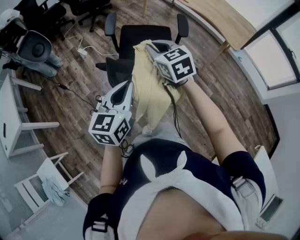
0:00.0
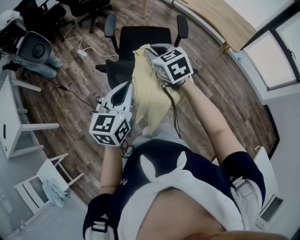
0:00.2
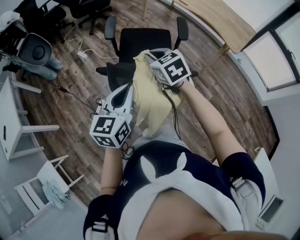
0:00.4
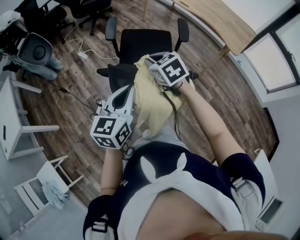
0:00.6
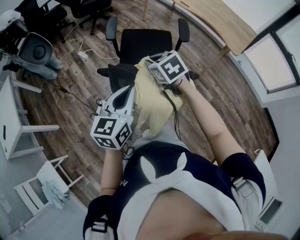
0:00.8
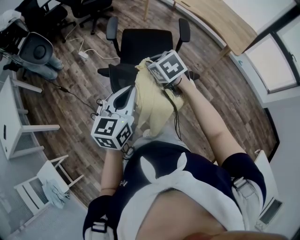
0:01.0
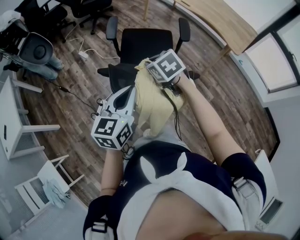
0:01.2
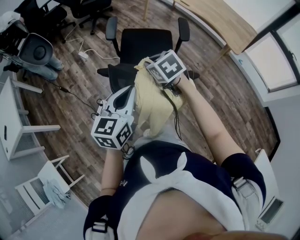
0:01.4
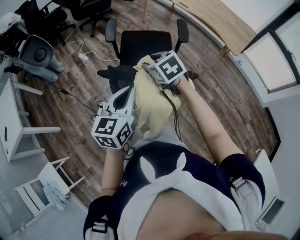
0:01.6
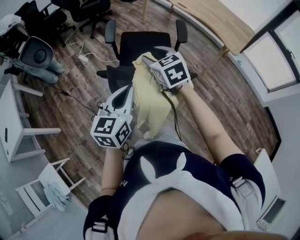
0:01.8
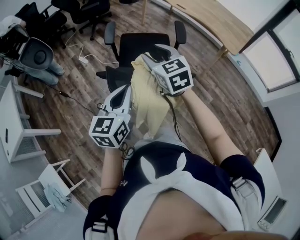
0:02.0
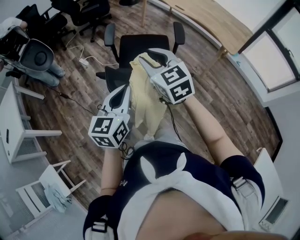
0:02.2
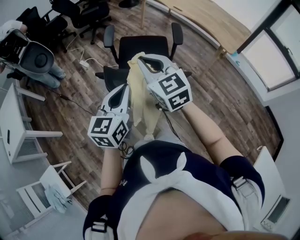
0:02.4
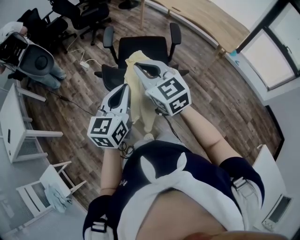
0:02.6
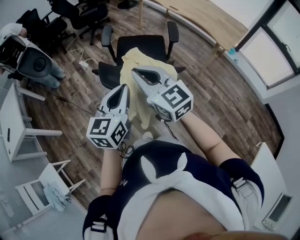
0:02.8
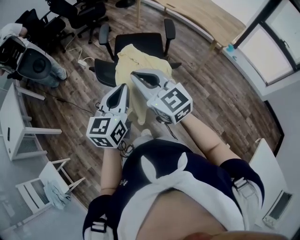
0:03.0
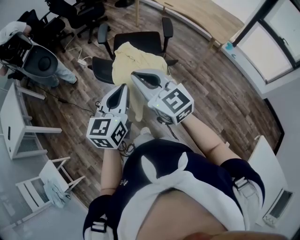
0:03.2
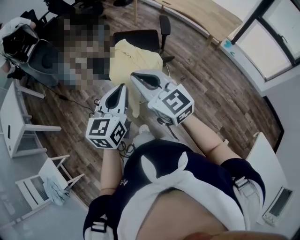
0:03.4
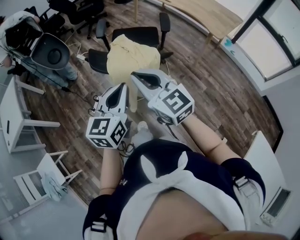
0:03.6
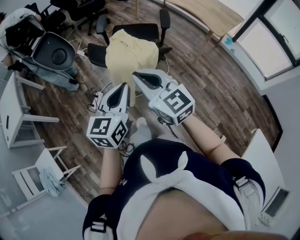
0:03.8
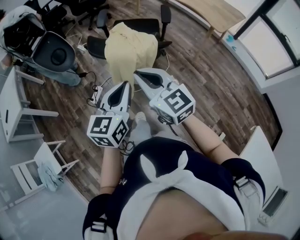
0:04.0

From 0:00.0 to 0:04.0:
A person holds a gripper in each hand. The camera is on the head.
From 0:00.0 to 0:01.4: The right gripper goes approximately 5 cm downward, and swivels some 20 degrees.
From 0:01.4 to 0:02.6: The left gripper shifts by approximately 5 cm. Meanwhile the right gripper travels upward and backward by roughly 20 cm, tips its fingers upward by about 40 degrees, and opens, then closes once more.
From 0:02.6 to 0:04.0: The grippers both shift backward by about 20 cm.

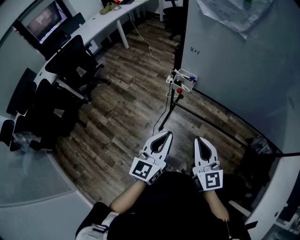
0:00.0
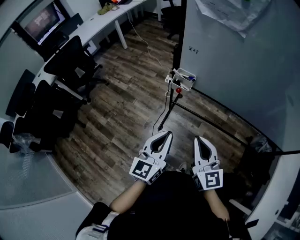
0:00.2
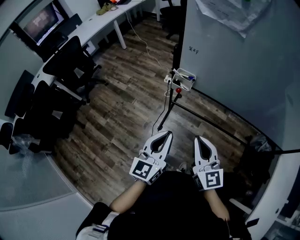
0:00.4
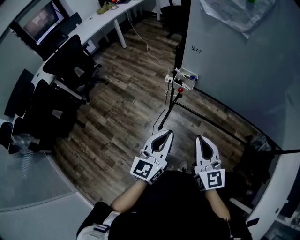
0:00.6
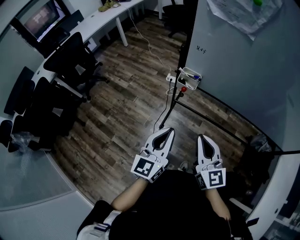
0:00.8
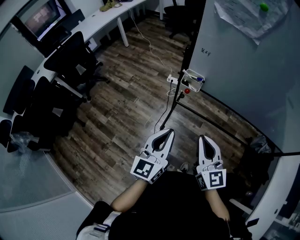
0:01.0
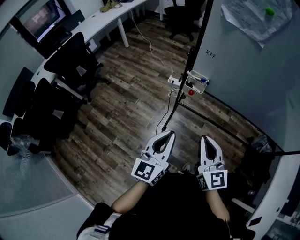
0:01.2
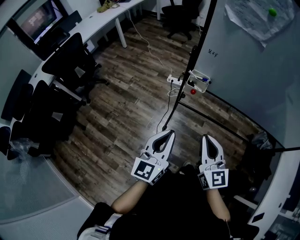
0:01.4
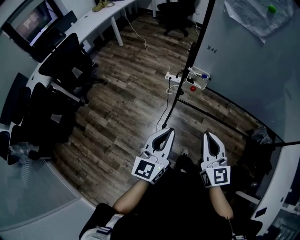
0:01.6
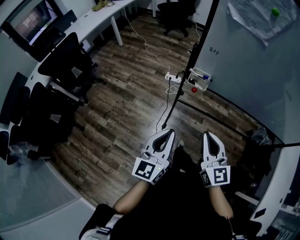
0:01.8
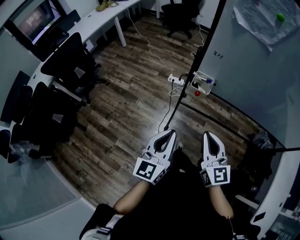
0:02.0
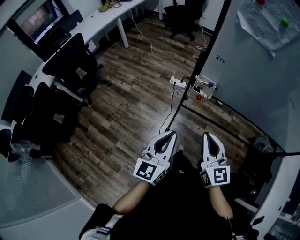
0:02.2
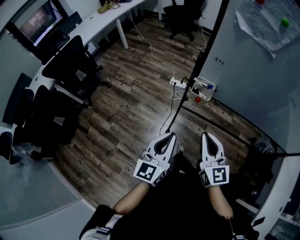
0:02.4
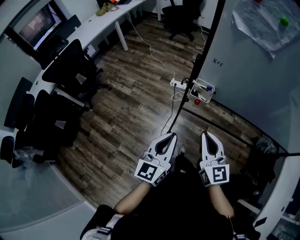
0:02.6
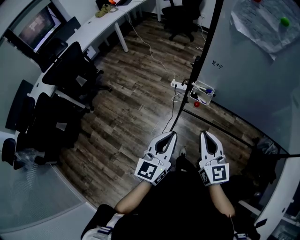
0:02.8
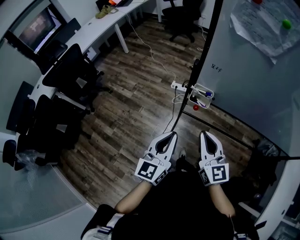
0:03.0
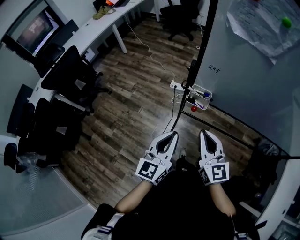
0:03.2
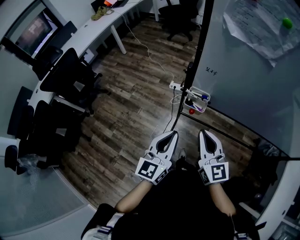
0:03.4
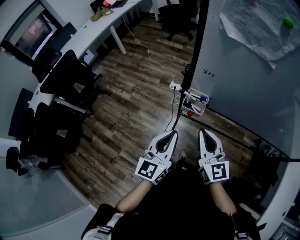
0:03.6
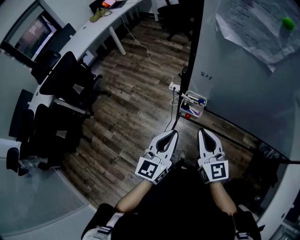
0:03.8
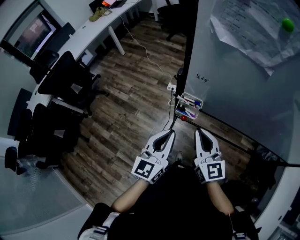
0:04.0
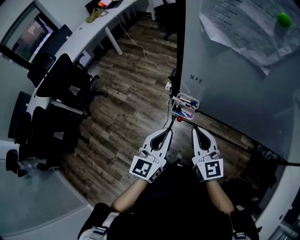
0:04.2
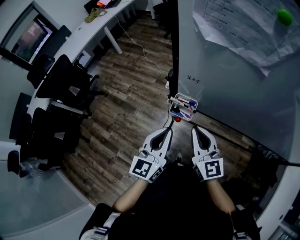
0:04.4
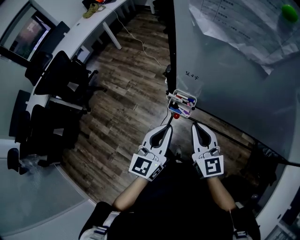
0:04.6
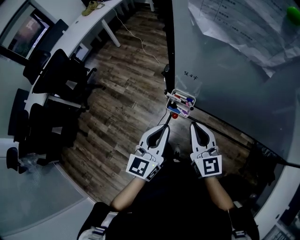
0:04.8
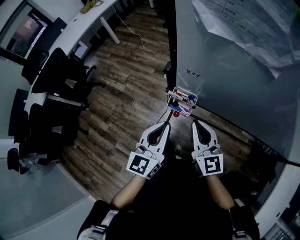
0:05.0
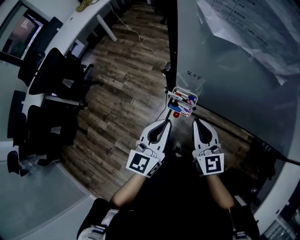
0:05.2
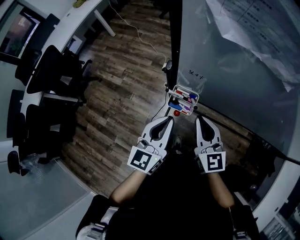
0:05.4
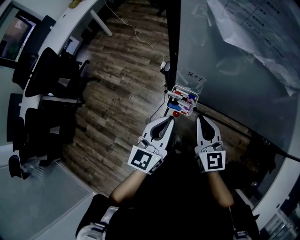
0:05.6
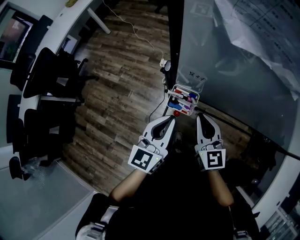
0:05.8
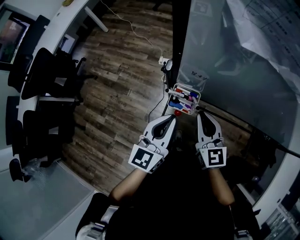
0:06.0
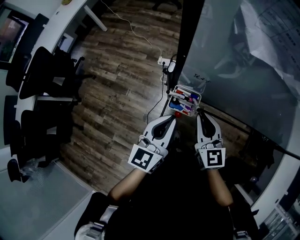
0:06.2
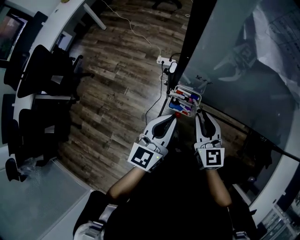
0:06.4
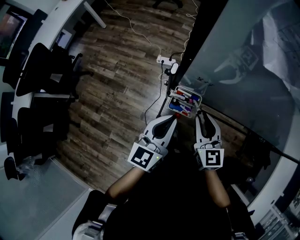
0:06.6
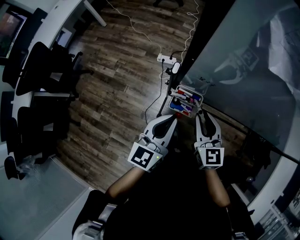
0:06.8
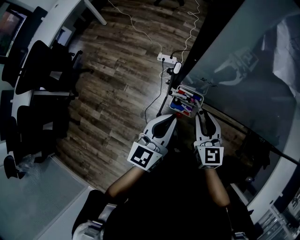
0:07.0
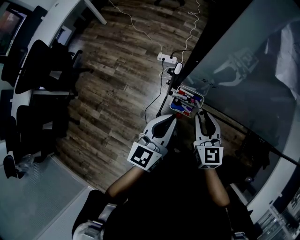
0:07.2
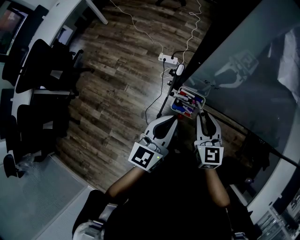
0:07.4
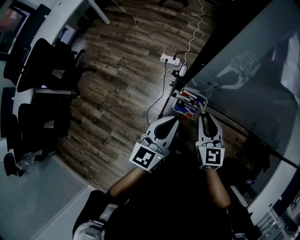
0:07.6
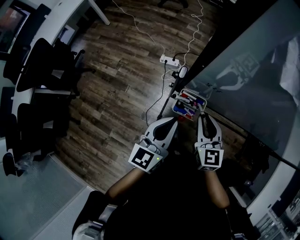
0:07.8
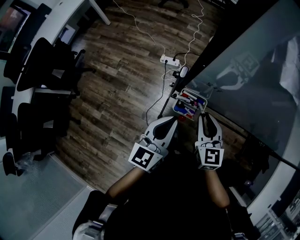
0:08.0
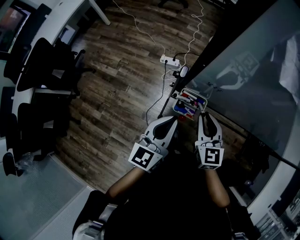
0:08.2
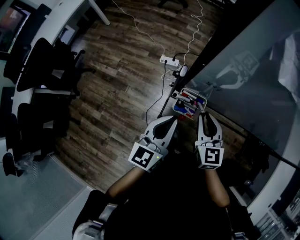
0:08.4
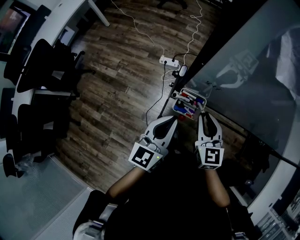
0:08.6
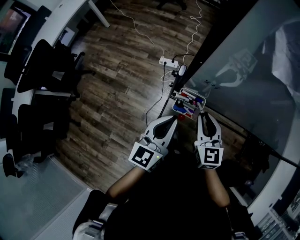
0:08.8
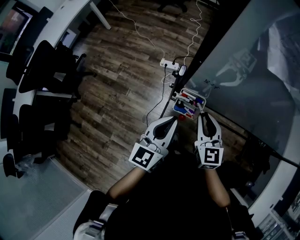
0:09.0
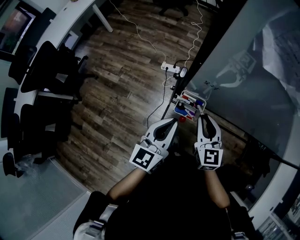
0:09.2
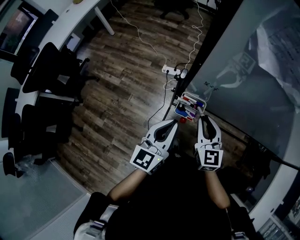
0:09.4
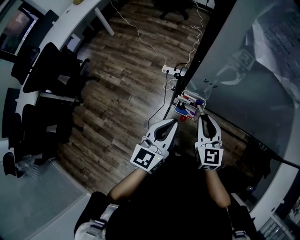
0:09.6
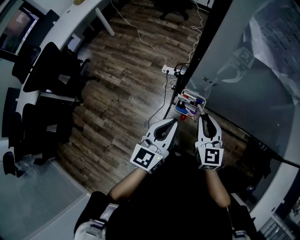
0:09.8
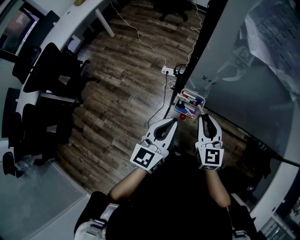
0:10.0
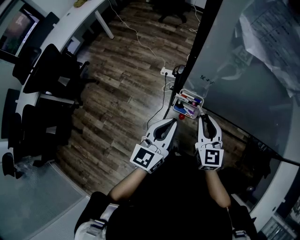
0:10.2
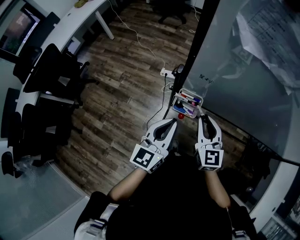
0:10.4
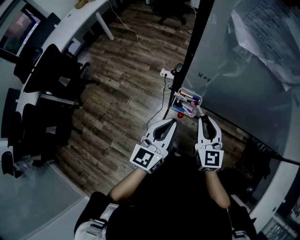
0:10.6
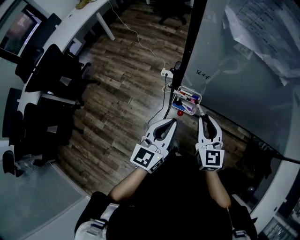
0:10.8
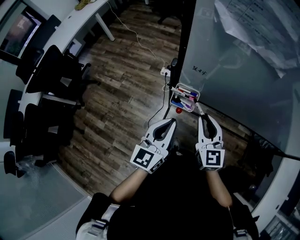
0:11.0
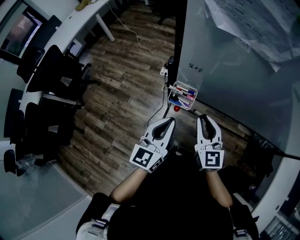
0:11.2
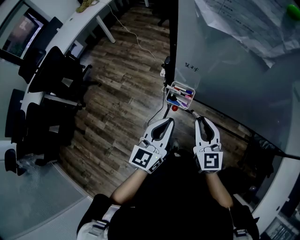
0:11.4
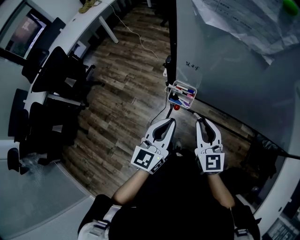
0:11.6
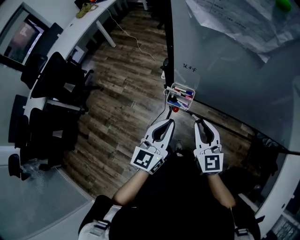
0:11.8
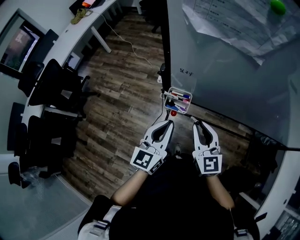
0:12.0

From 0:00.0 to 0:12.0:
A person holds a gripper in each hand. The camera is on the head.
From 0:00.0 to 0:01.6: Both grippers travel together to the left, about 10 cm.
From 0:01.6 to 0:03.0: The two grippers go some 10 cm forward.
From 0:03.0 to 0:04.4: Both grippers move forward and to the right, roughly 15 cm.
From 0:04.4 to 0:06.0: The left gripper moves forward, roughly 5 cm. Meanwhile the right gripper shifts some 10 cm forward and downward.
From 0:06.0 to 0:10.4: The grippers move only a little.
From 0:10.4 to 0:12.0: The right gripper moves backward, some 5 cm.

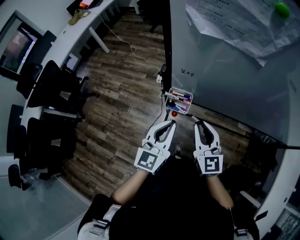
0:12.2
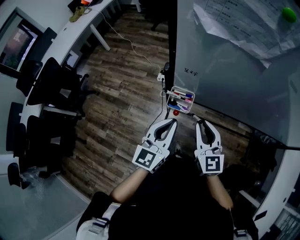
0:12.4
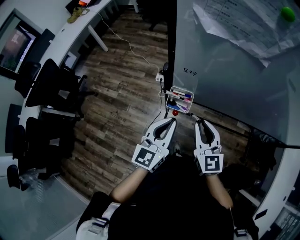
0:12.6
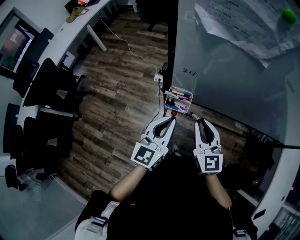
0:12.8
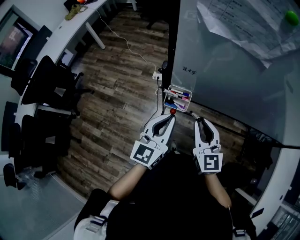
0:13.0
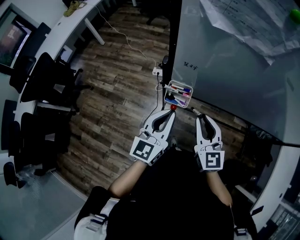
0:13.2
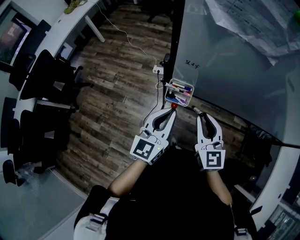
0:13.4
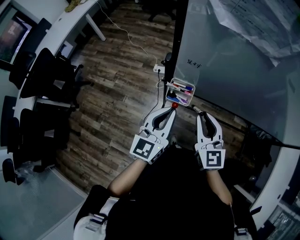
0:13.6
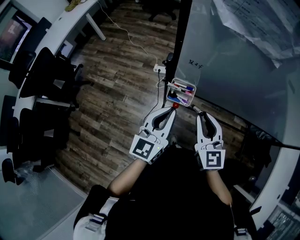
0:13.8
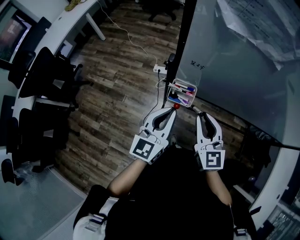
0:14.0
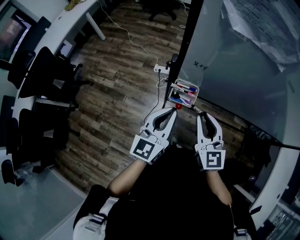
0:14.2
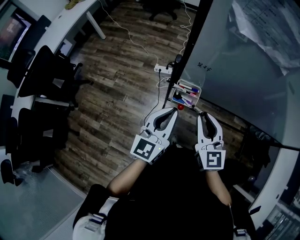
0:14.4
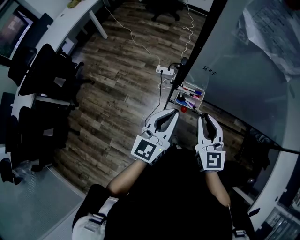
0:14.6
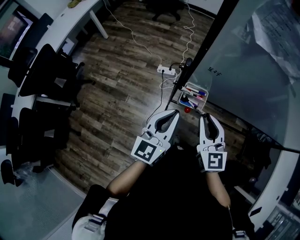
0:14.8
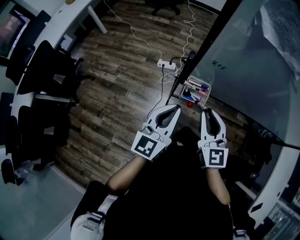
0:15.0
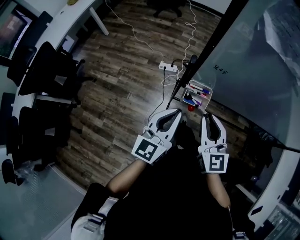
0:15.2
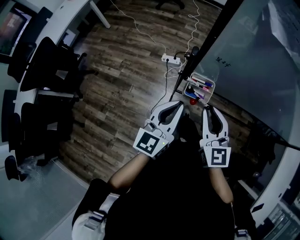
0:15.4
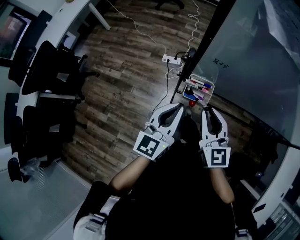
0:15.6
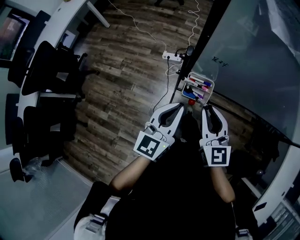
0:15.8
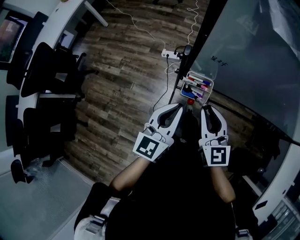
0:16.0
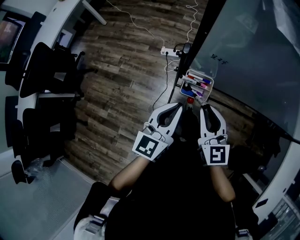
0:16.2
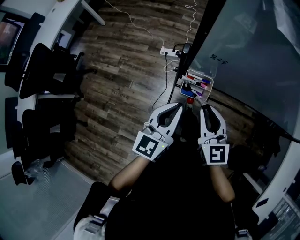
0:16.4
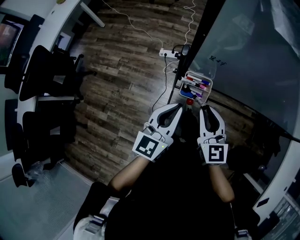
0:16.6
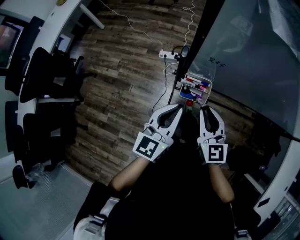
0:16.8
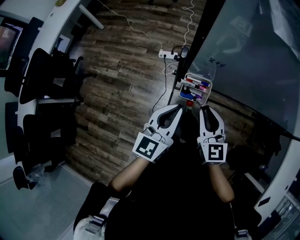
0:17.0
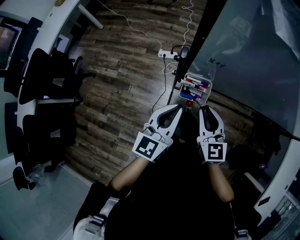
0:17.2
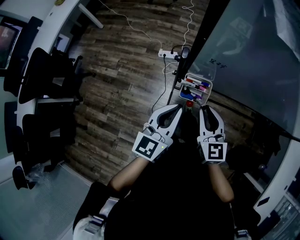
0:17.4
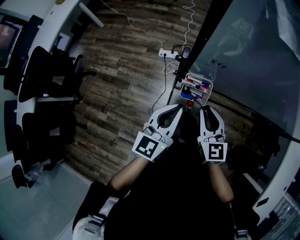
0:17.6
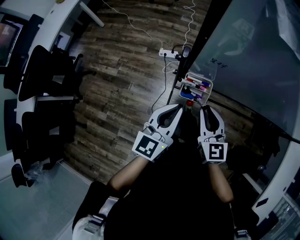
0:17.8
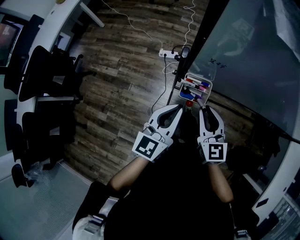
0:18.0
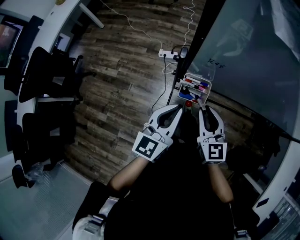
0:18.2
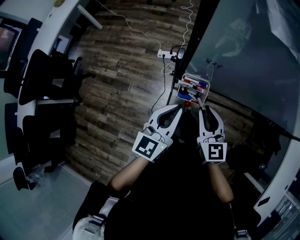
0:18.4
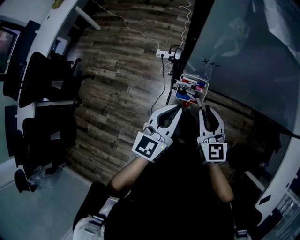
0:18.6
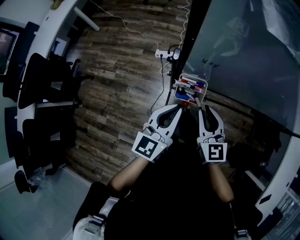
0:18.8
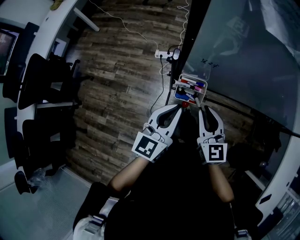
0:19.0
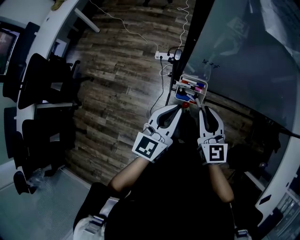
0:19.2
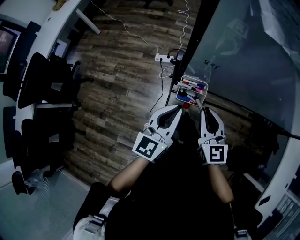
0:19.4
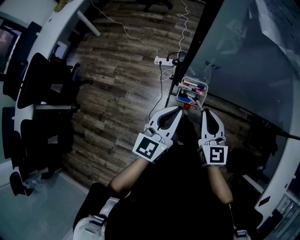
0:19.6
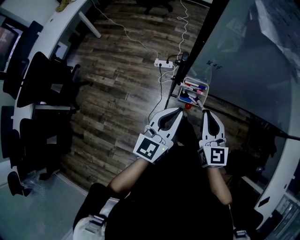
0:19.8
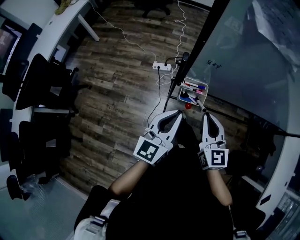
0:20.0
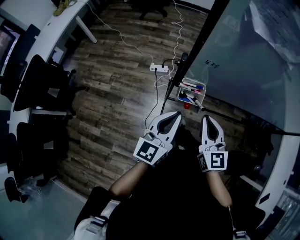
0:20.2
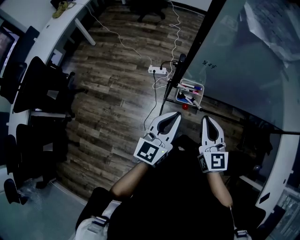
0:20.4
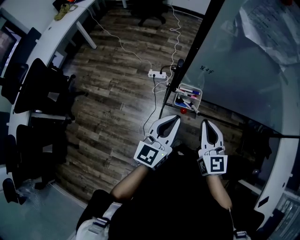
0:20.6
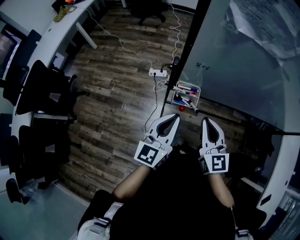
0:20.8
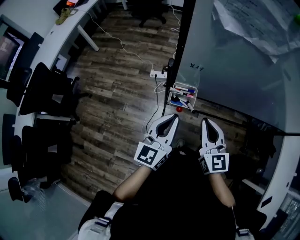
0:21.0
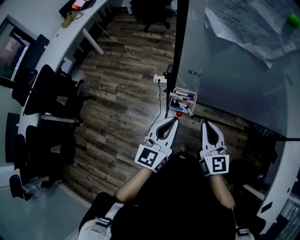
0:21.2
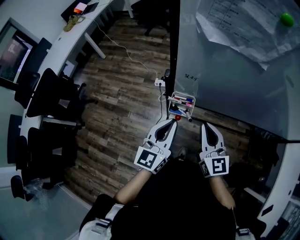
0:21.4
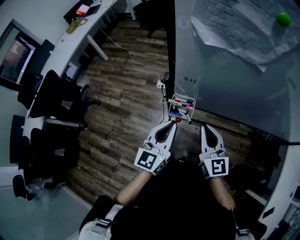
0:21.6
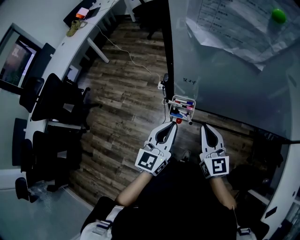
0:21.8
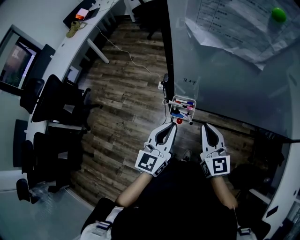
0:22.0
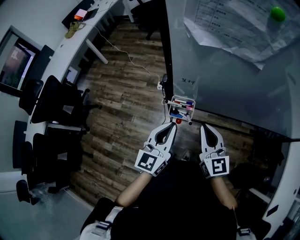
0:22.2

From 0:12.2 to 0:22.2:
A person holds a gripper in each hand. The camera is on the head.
From 0:12.2 to 0:13.6: The grippers move only a little.
From 0:13.6 to 0:15.0: Both grippers travel together to the left, some 5 cm.
From 0:15.0 to 0:16.4: The grippers stay close to where they were, moving slightly.
From 0:16.4 to 0:19.4: There are only small adjustments of the grippers.
From 0:19.4 to 0:20.8: The right gripper goes about 5 cm upward.
From 0:20.8 to 0:22.2: The grippers move only a little.
